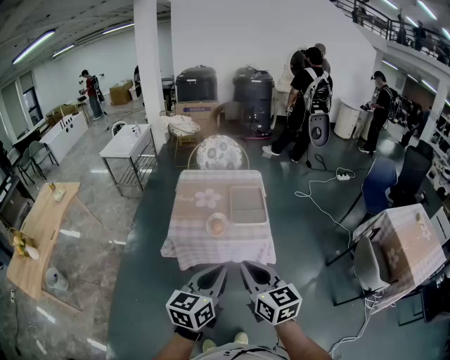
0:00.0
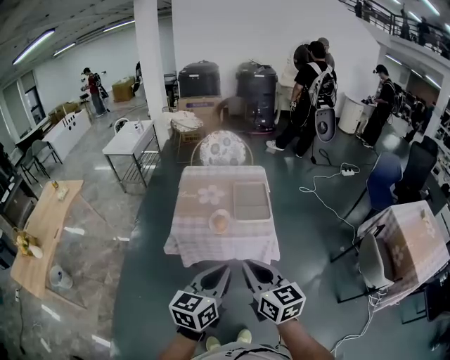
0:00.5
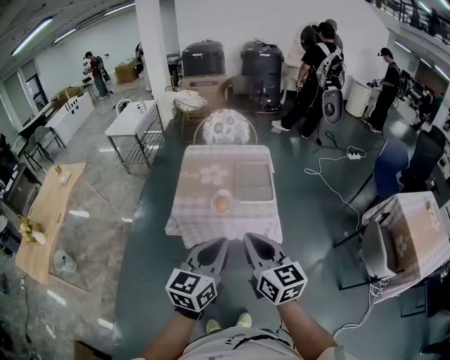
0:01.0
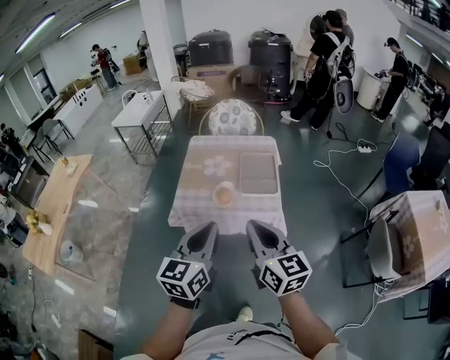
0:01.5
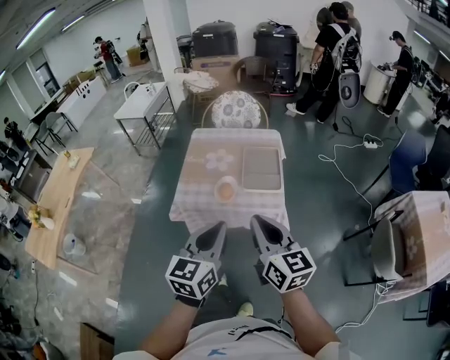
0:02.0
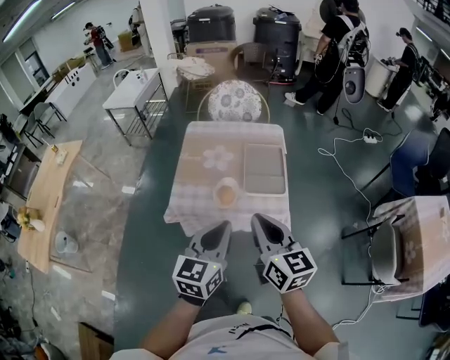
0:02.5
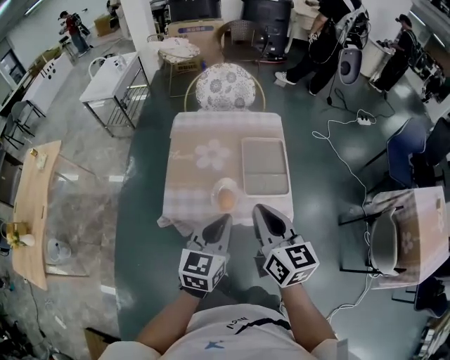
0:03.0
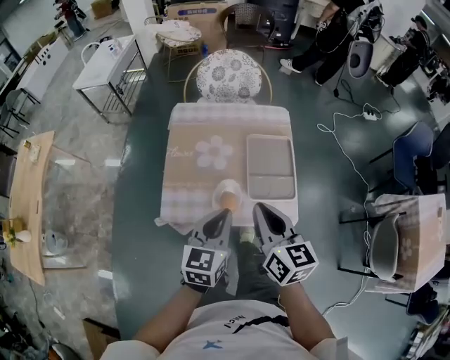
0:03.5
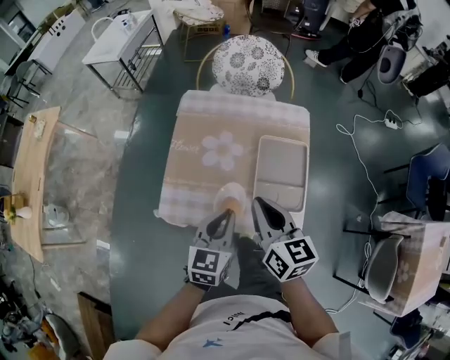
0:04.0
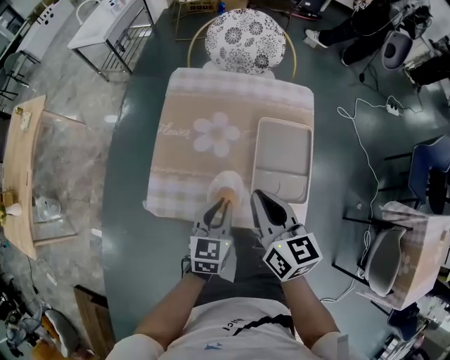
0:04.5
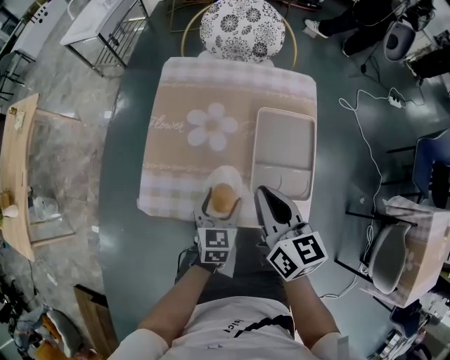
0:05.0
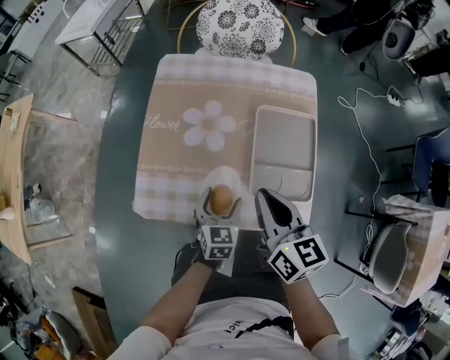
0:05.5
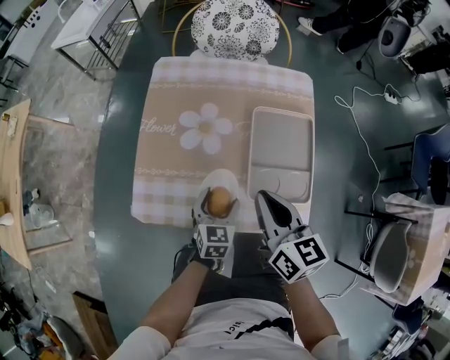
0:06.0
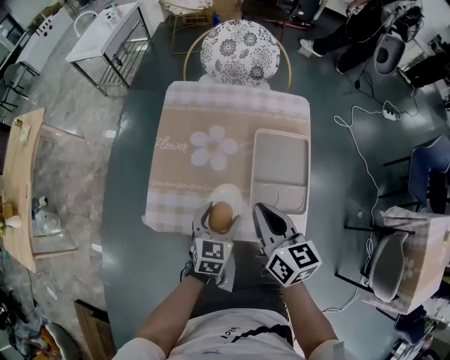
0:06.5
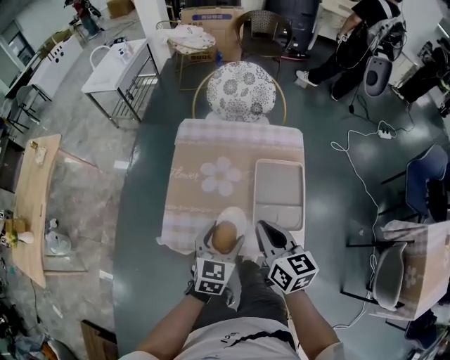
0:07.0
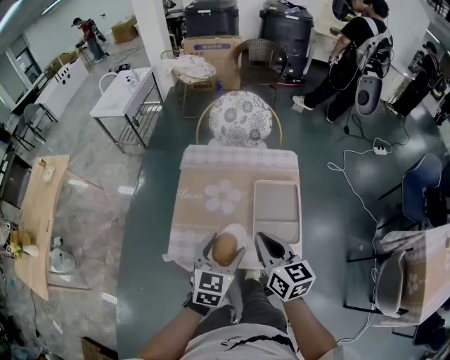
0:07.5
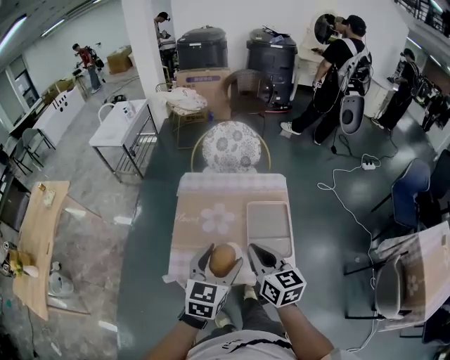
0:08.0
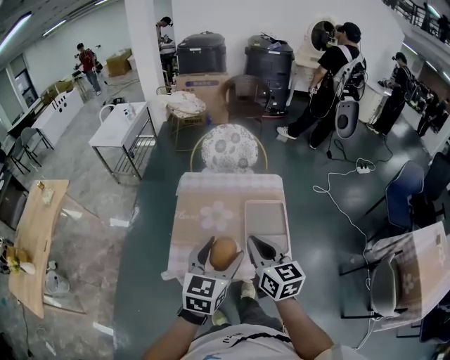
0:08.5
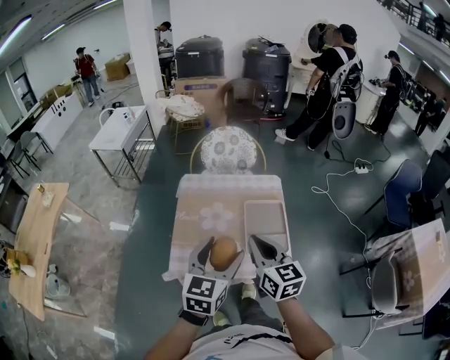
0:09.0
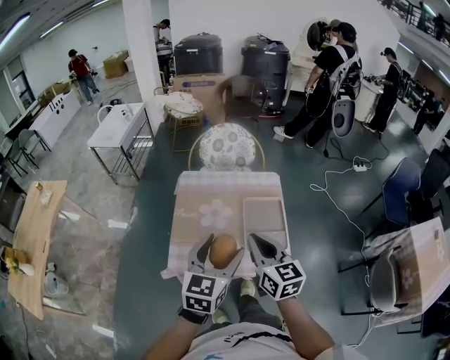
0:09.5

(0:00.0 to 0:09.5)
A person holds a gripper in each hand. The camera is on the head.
0:00.0 - 0:02.0: The right gripper goes about 10 cm forward and to the right. The left gripper goes roughly 5 cm forward.
0:02.0 - 0:04.0: Both grippers travel together forward and downward, some 35 cm.
0:04.0 - 0:05.5: The left gripper goes roughly 20 cm downward, and opens up. The right gripper heads downward, covering roughly 10 cm.
0:05.5 - 0:07.5: The left gripper travels upward by roughly 25 cm; the right gripper heads upward, covering roughly 10 cm.
0:07.5 - 0:09.5: The left gripper is displaced upward by about 15 cm. Meanwhile the right gripper travels upward by approximately 10 cm.

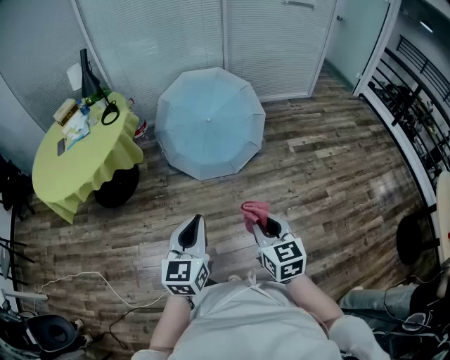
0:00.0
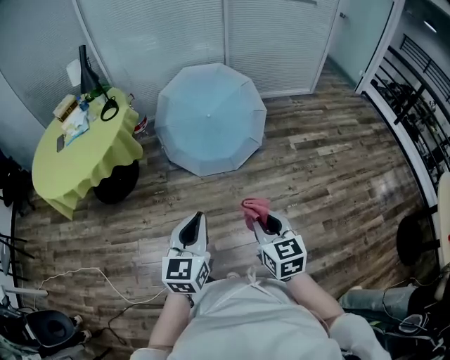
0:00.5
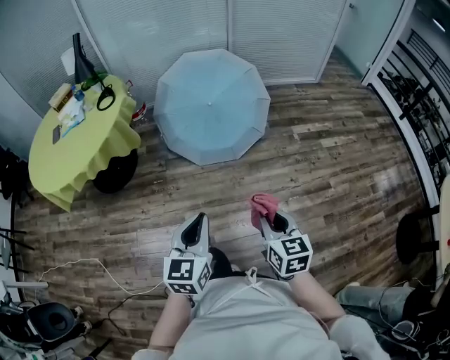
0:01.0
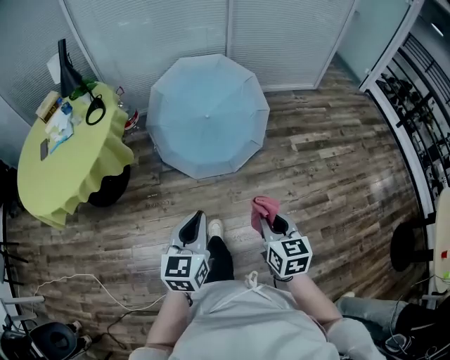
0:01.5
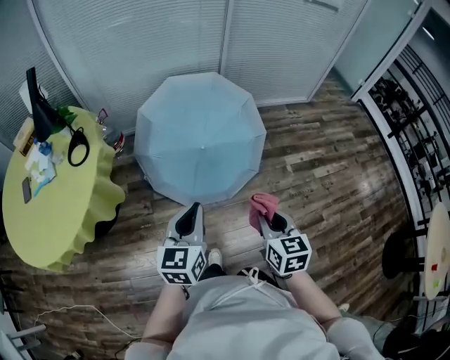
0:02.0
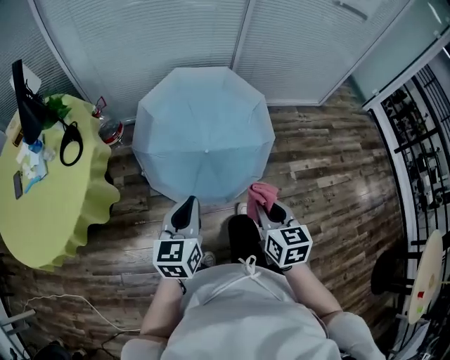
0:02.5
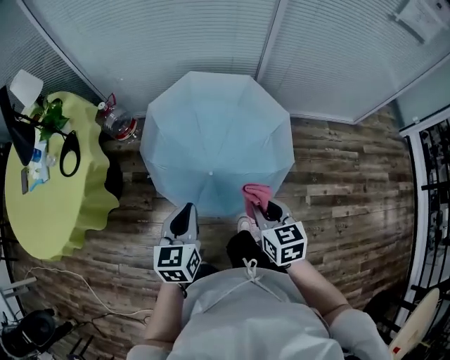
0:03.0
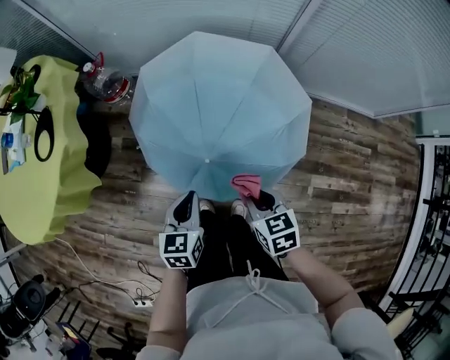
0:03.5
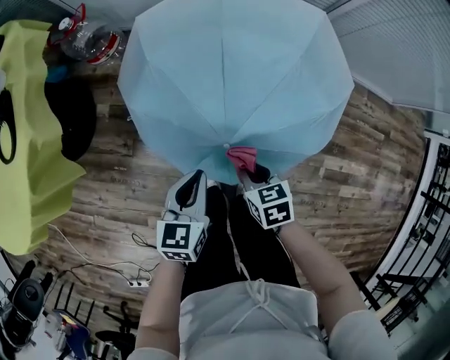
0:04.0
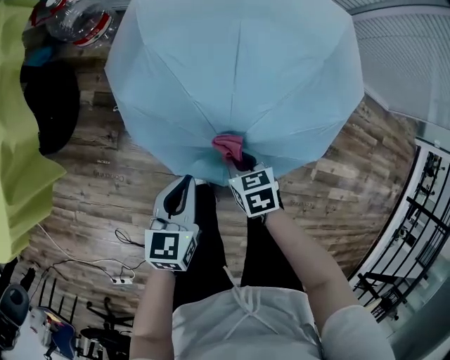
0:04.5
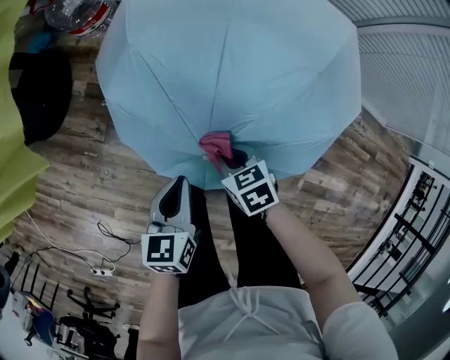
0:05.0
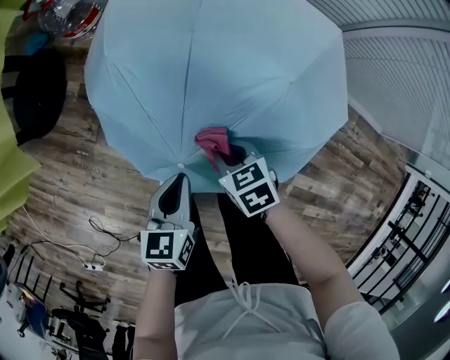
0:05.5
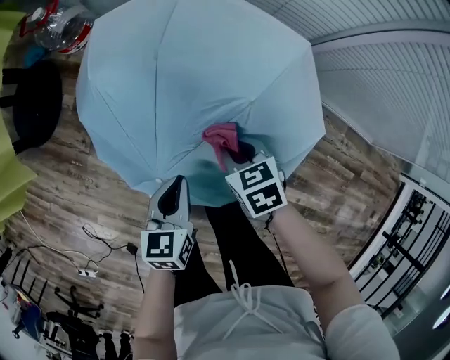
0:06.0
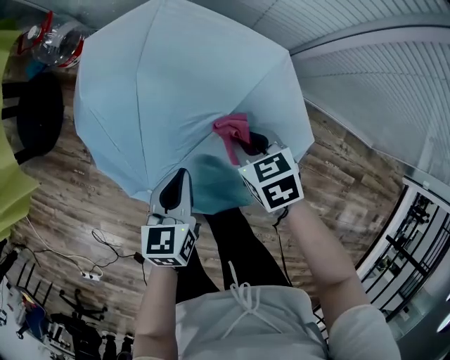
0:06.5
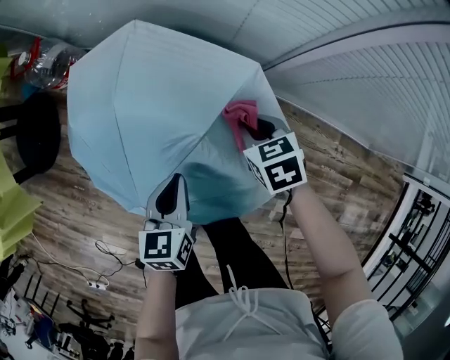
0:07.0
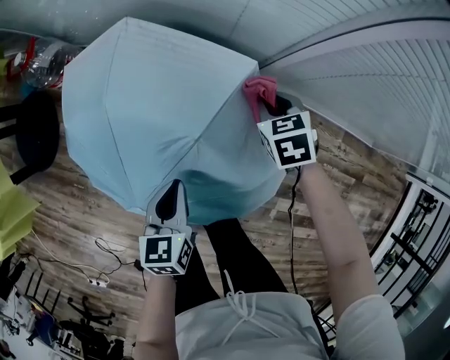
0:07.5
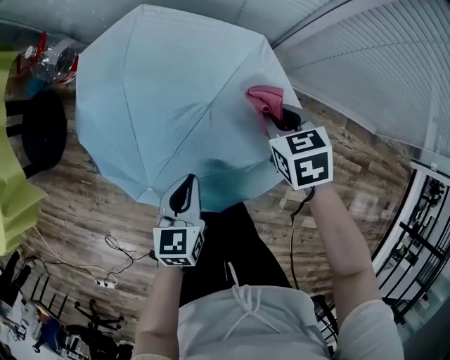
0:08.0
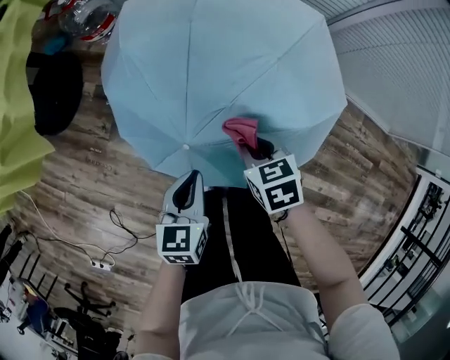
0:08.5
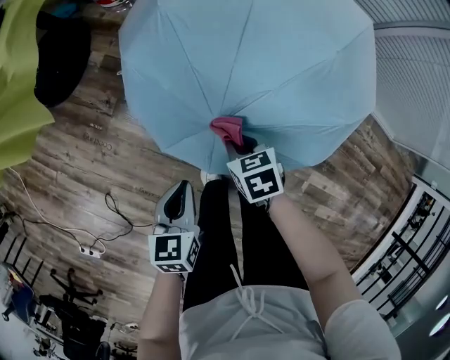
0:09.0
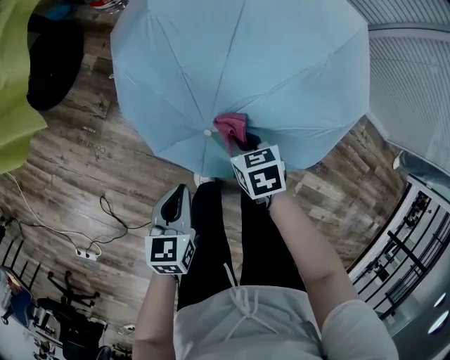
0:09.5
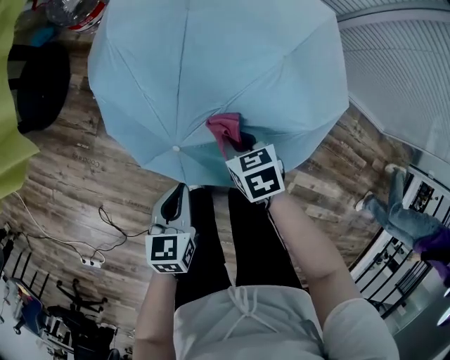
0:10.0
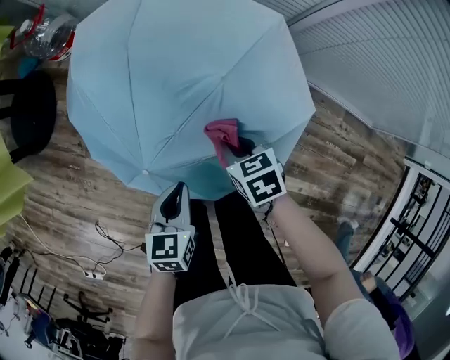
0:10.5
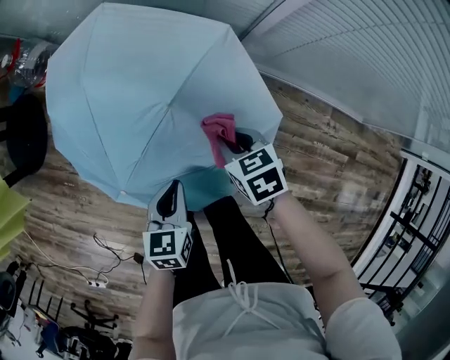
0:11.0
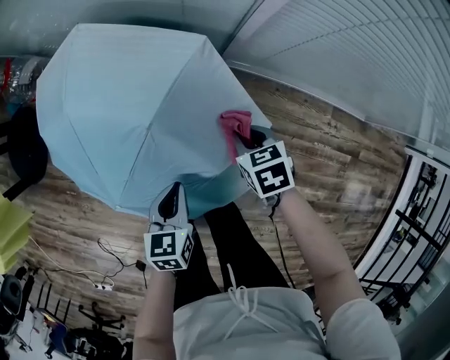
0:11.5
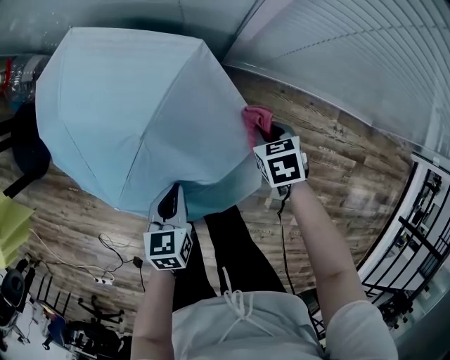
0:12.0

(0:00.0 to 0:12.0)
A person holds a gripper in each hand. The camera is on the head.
0:00.0 - 0:02.0: The pair of grippers is taken forward, about 50 cm.
0:02.0 - 0:04.0: The two grippers travel together, some 50 cm. The left gripper changes its angle by approximately 30 degrees. The right gripper tips its fingers downward by approximately 30 degrees.
0:04.0 - 0:06.0: The left gripper shifts approximately 15 cm to the right. The right gripper shifts about 25 cm to the right and forward, and turns by approximately 20 degrees.
0:06.0 - 0:08.0: The right gripper heads to the right, upward and forward, covering approximately 20 cm. Meanwhile the left gripper moves to the right, roughly 10 cm.
0:08.0 - 0:10.0: The right gripper moves to the left, backward and downward, roughly 30 cm; the left gripper goes about 20 cm to the left and backward.
0:10.0 - 0:12.0: The left gripper moves to the right and forward, some 30 cm; the right gripper goes roughly 40 cm to the right.

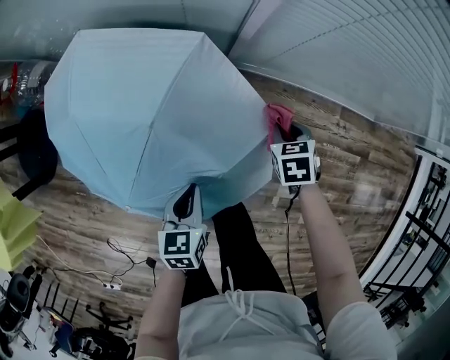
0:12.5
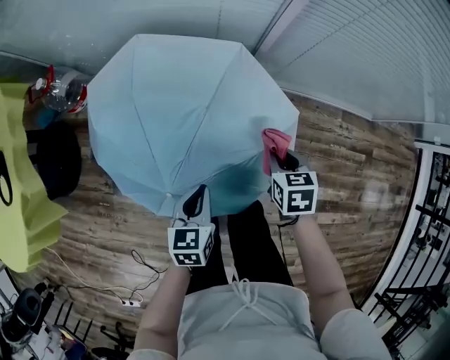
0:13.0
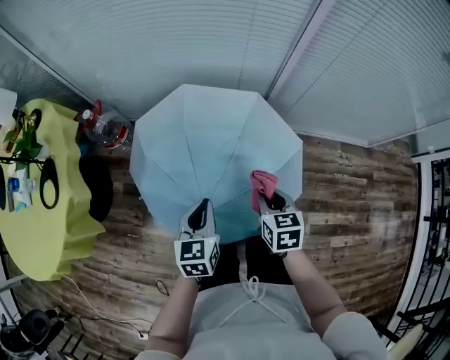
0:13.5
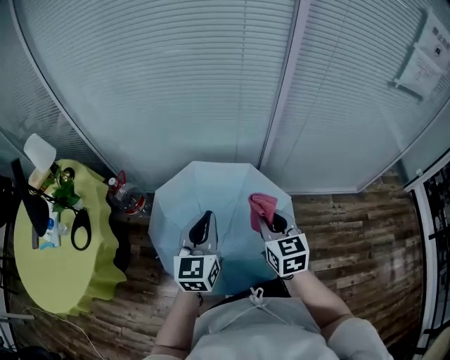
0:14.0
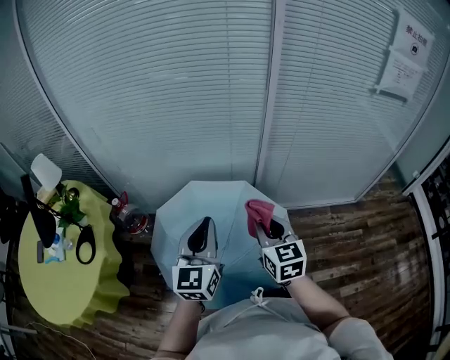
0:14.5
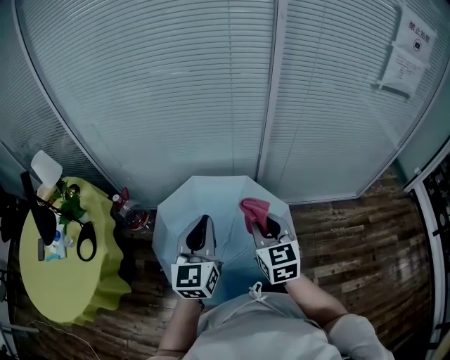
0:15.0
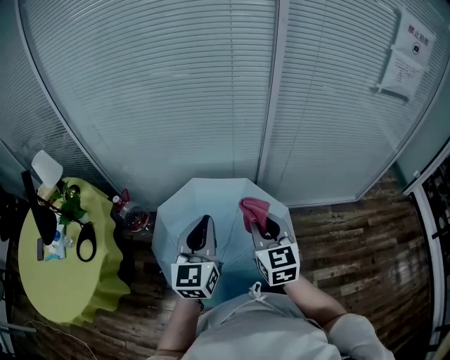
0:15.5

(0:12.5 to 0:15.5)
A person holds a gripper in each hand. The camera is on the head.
0:12.5 - 0:14.0: The right gripper travels upward, to the left and backward by about 60 cm, and tips its fingers upward by some 40 degrees, while the left gripper is displaced upward and to the left by approximately 60 cm, and tilts its fingers approximately 40 degrees upward.
0:14.0 - 0:15.5: The grippers both shift upward by about 5 cm.

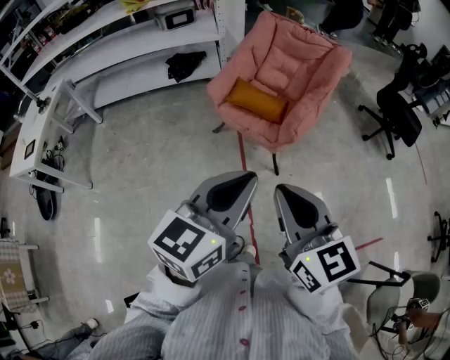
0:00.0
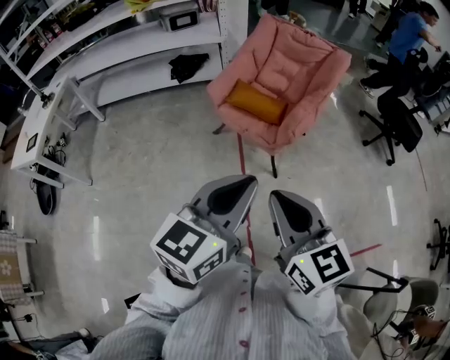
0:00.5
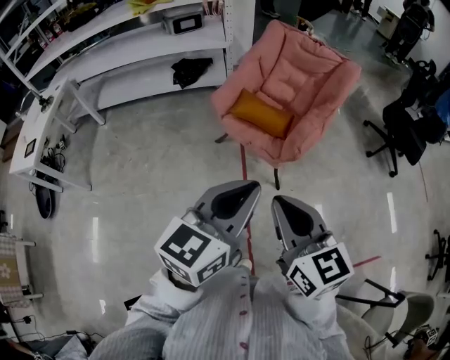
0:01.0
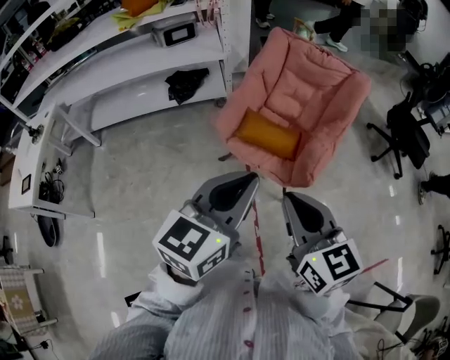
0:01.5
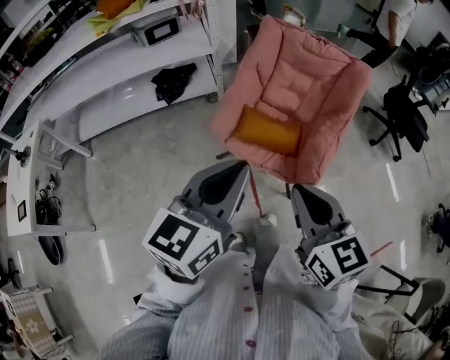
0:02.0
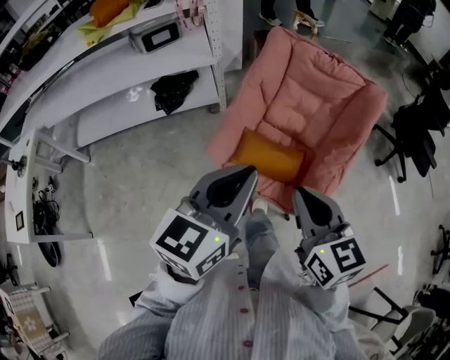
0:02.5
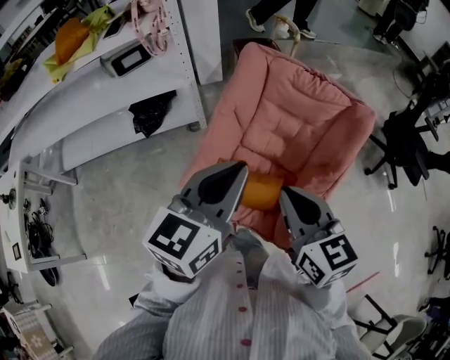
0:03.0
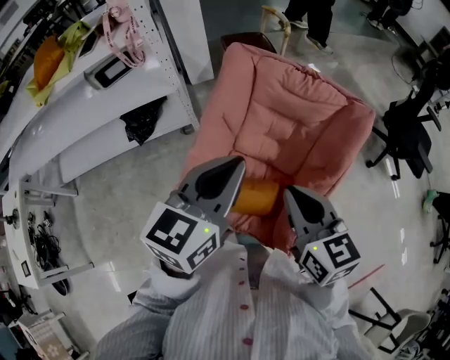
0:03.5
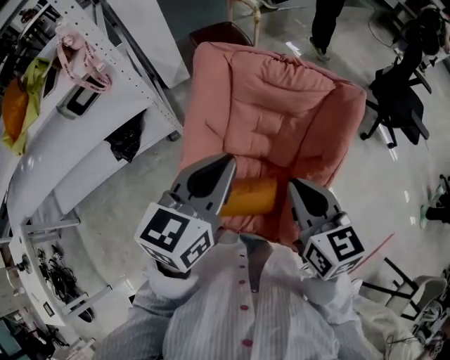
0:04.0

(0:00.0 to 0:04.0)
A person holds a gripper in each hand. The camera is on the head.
0:00.0 - 0:02.0: The left gripper moves forward and to the left, about 30 cm. Meanwhile the right gripper moves forward, about 25 cm.
0:02.0 - 0:04.0: Both grippers are carried forward, some 50 cm.
